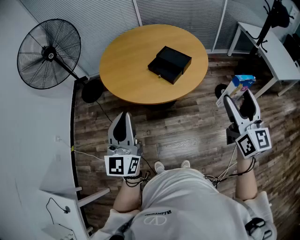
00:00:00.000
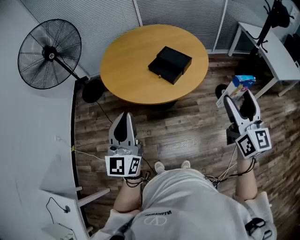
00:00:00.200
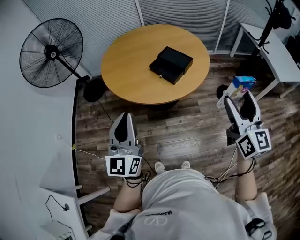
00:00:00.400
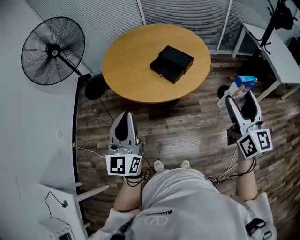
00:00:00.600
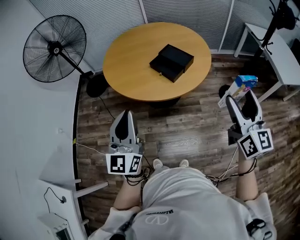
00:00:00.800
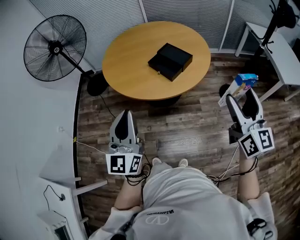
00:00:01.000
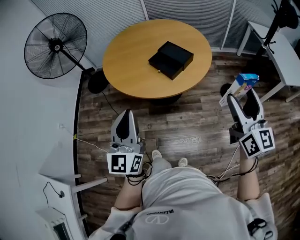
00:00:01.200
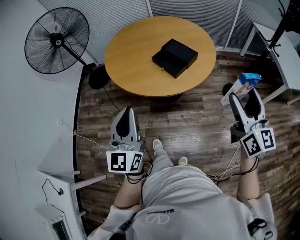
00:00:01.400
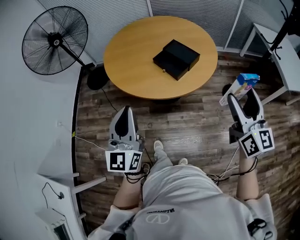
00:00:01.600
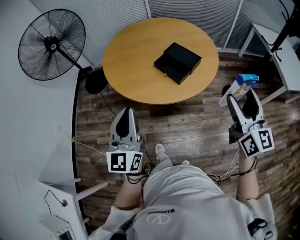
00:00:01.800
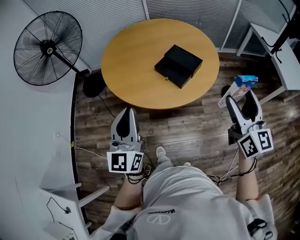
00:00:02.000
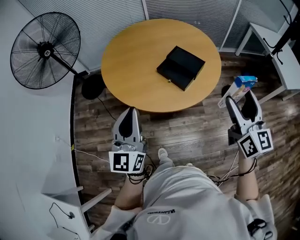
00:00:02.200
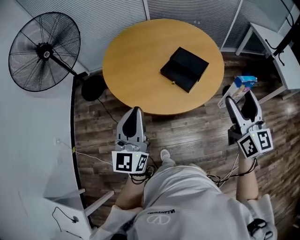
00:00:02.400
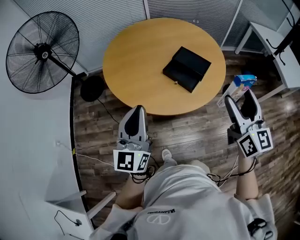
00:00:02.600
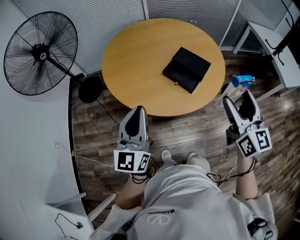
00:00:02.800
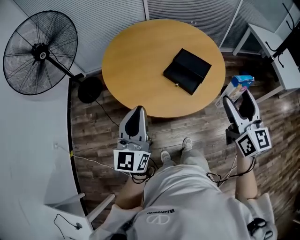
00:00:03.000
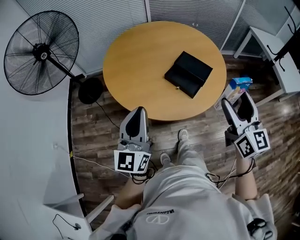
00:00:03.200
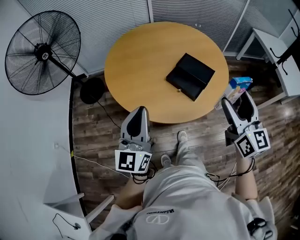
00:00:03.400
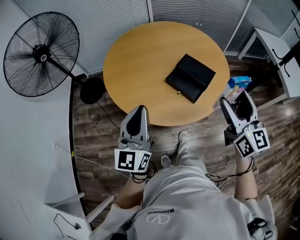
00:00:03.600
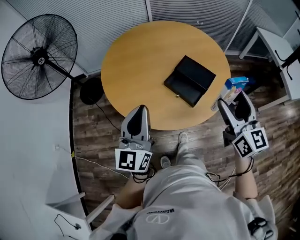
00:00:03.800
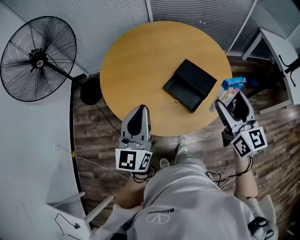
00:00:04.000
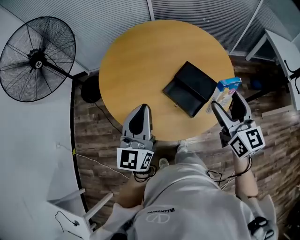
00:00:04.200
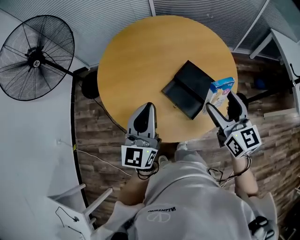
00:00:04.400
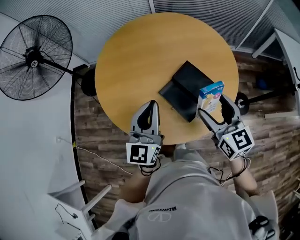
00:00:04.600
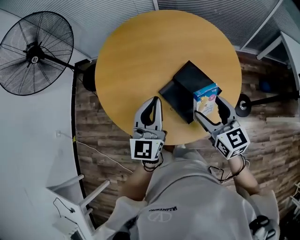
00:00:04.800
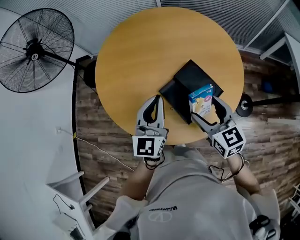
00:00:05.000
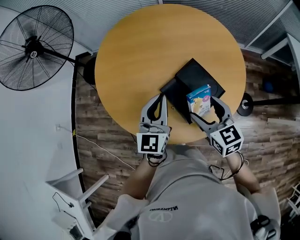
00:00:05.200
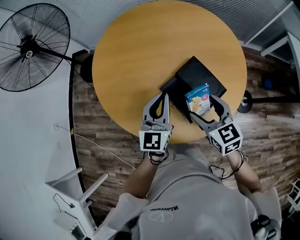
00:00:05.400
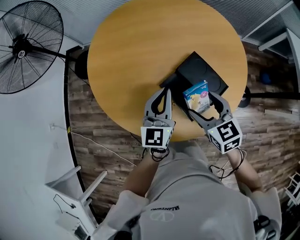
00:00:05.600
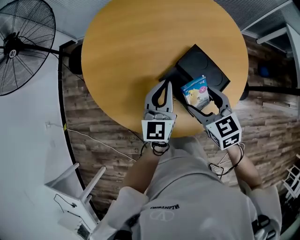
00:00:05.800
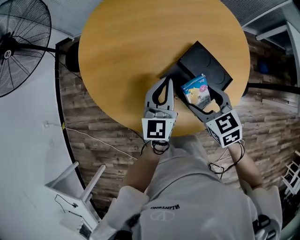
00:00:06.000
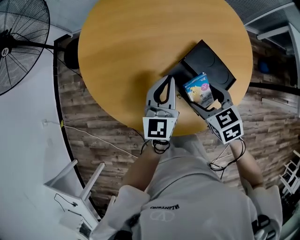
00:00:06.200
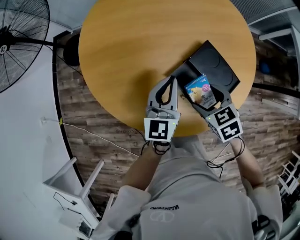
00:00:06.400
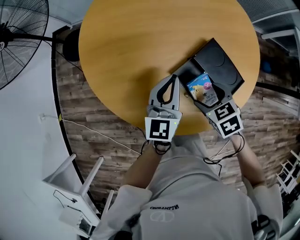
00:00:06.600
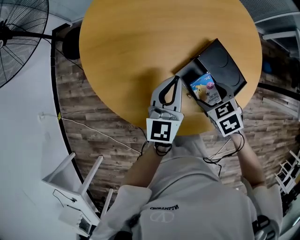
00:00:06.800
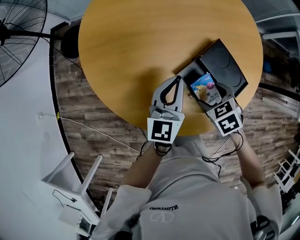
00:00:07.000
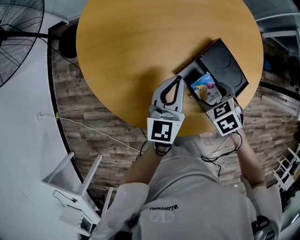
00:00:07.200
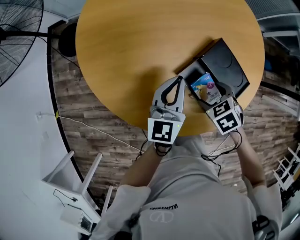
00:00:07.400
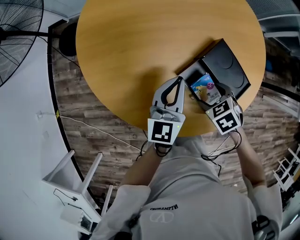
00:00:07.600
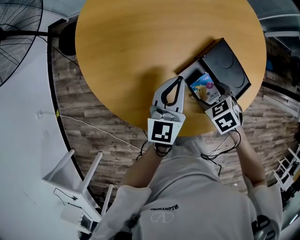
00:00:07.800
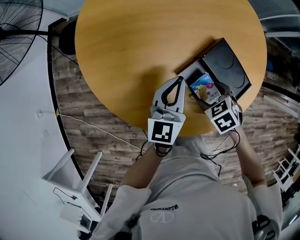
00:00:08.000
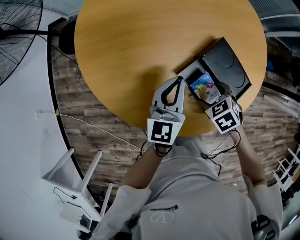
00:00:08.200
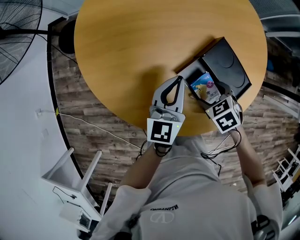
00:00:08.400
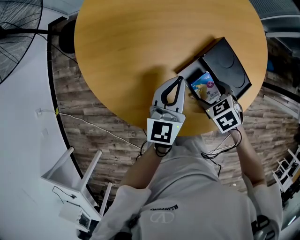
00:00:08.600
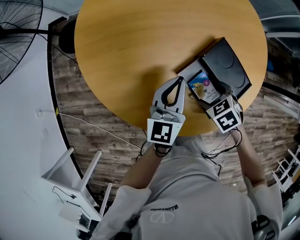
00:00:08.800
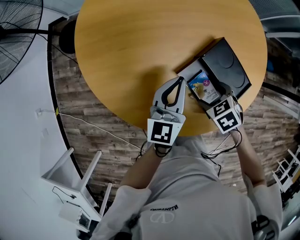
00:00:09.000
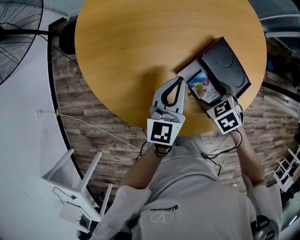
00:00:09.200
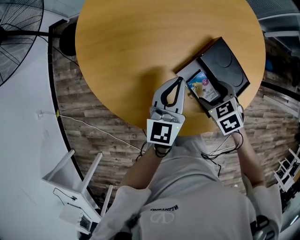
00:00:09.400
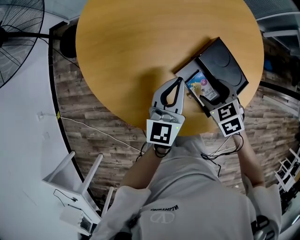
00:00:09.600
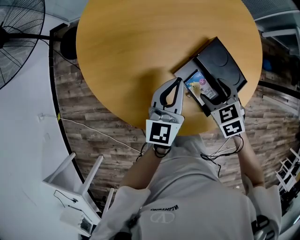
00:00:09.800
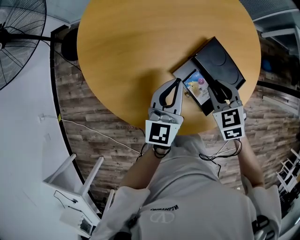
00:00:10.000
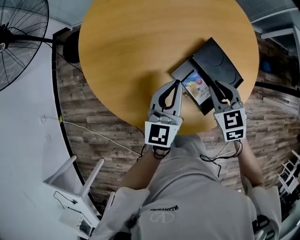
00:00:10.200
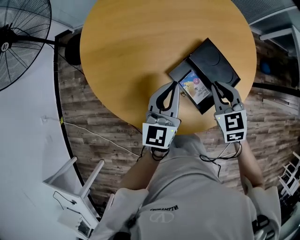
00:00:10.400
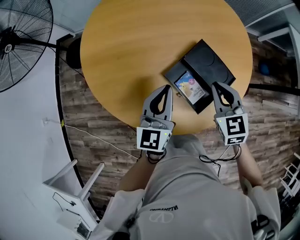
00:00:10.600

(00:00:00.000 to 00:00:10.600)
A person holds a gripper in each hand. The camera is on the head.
00:00:00.000 - 00:00:01.600: The right gripper changes place by approximately 5 cm.
00:00:01.600 - 00:00:03.000: The left gripper goes roughly 20 cm forward and to the left. The right gripper moves to the left and forward, approximately 20 cm.
00:00:03.000 - 00:00:04.600: The left gripper travels forward and to the right by approximately 30 cm, while the right gripper is displaced forward and downward by roughly 30 cm, and changes its angle by some 30 degrees.
00:00:04.600 - 00:00:06.000: The right gripper moves downward and to the left, some 15 cm, and rotates some 30 degrees. Meanwhile the left gripper heads downward and forward, covering about 15 cm.
00:00:06.000 - 00:00:07.600: The right gripper moves downward, approximately 15 cm, and turns by roughly 30 degrees, while the left gripper travels downward by approximately 5 cm.
00:00:07.600 - 00:00:09.000: There are only small adjustments of the grippers.
00:00:09.000 - 00:00:10.600: The left gripper shifts roughly 5 cm upward. Meanwhile the right gripper shifts about 15 cm upward, tips its fingers upward by about 40 degrees, and closes up.

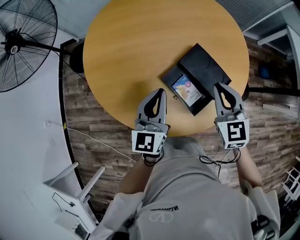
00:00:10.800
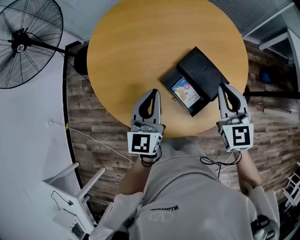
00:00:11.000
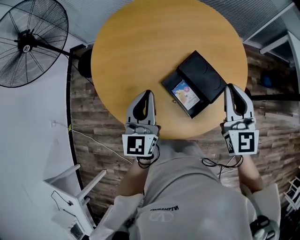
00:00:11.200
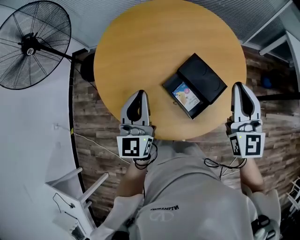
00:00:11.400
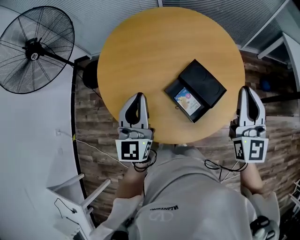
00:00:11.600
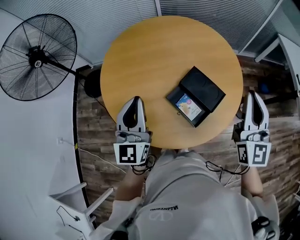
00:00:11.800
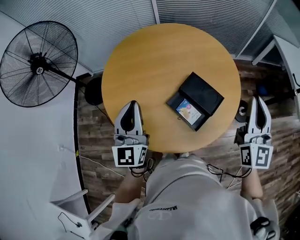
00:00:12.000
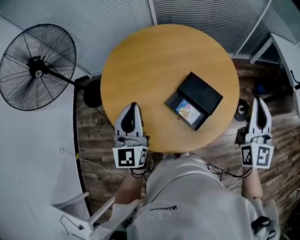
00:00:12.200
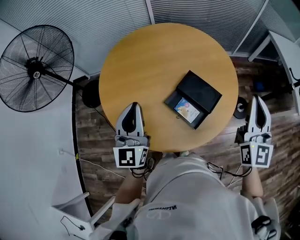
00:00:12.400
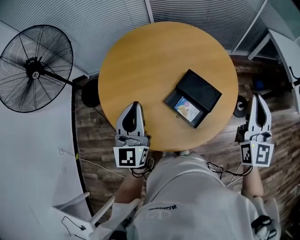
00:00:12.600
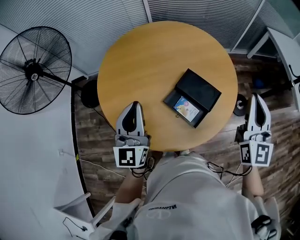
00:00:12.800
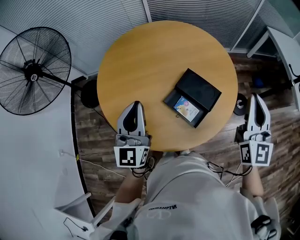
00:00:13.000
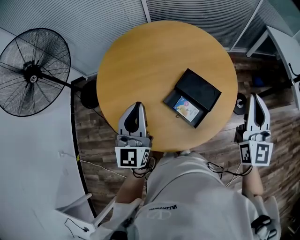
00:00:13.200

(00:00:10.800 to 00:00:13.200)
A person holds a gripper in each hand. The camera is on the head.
00:00:10.800 - 00:00:12.000: The right gripper moves upward and to the right, some 25 cm, and tilts its fingers approximately 30 degrees upward. The left gripper shifts roughly 20 cm upward and to the left.
00:00:12.000 - 00:00:13.200: There are only small adjustments of the grippers.

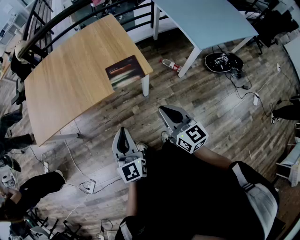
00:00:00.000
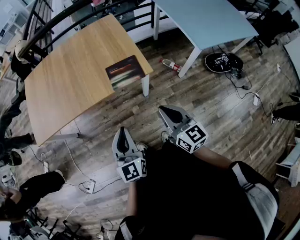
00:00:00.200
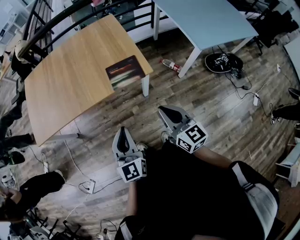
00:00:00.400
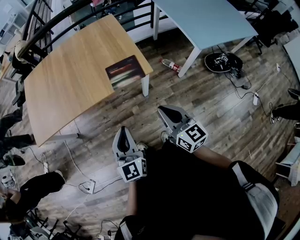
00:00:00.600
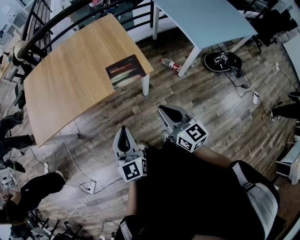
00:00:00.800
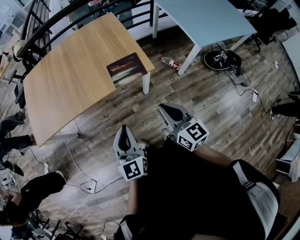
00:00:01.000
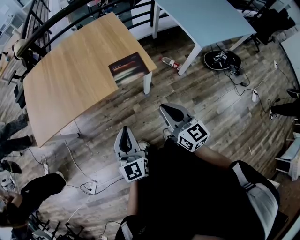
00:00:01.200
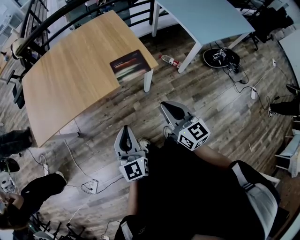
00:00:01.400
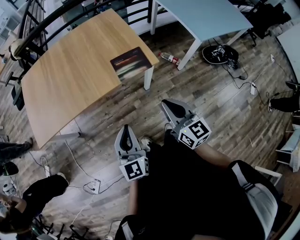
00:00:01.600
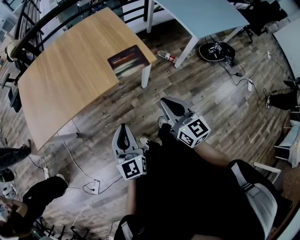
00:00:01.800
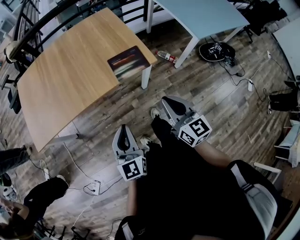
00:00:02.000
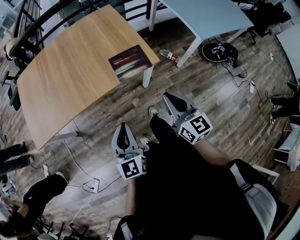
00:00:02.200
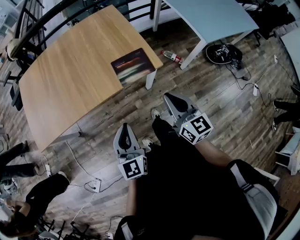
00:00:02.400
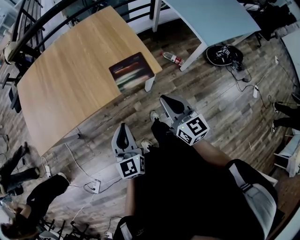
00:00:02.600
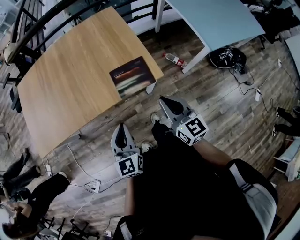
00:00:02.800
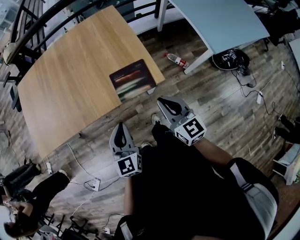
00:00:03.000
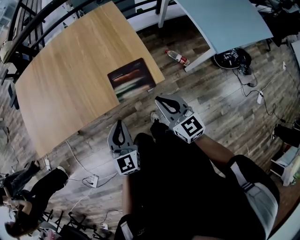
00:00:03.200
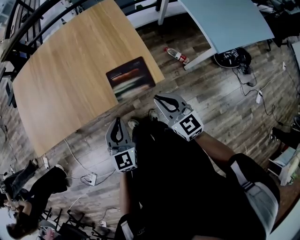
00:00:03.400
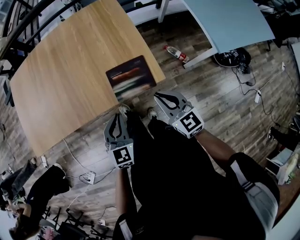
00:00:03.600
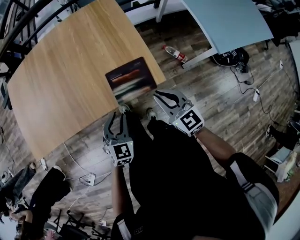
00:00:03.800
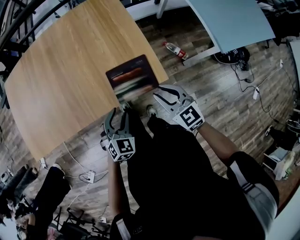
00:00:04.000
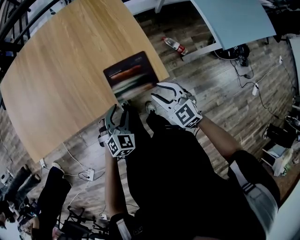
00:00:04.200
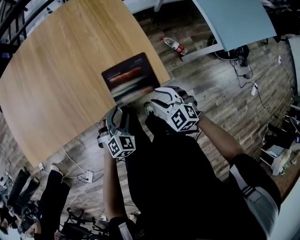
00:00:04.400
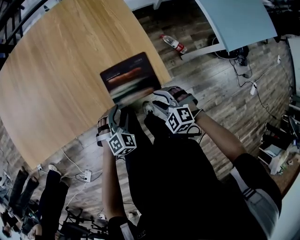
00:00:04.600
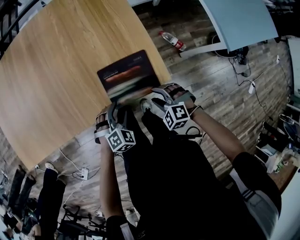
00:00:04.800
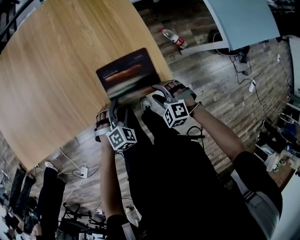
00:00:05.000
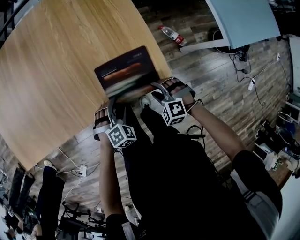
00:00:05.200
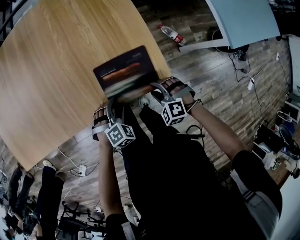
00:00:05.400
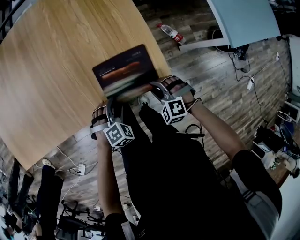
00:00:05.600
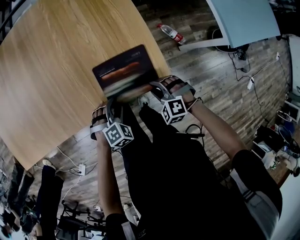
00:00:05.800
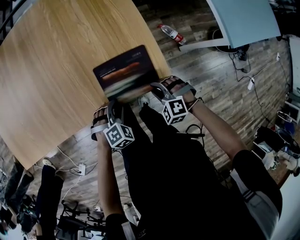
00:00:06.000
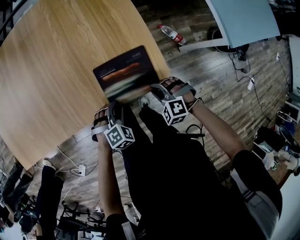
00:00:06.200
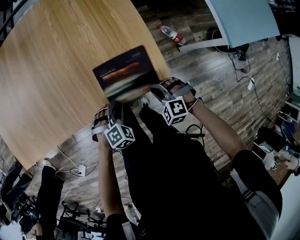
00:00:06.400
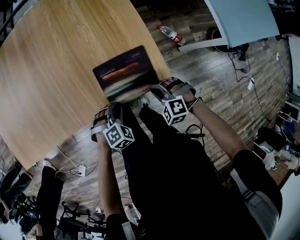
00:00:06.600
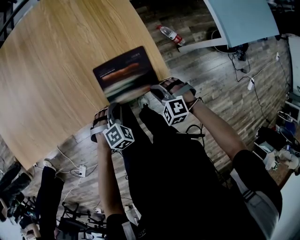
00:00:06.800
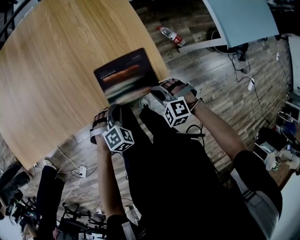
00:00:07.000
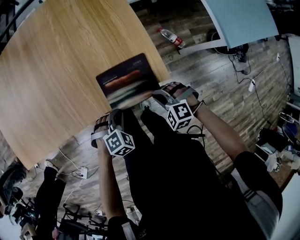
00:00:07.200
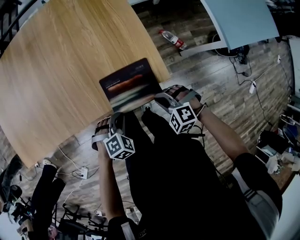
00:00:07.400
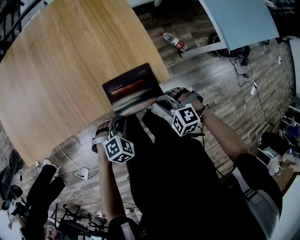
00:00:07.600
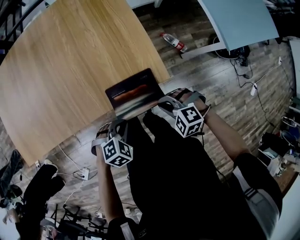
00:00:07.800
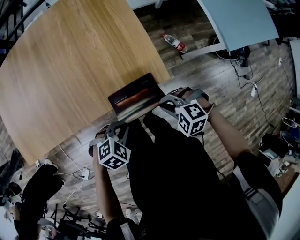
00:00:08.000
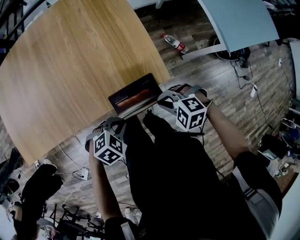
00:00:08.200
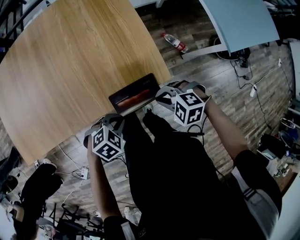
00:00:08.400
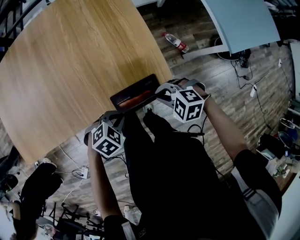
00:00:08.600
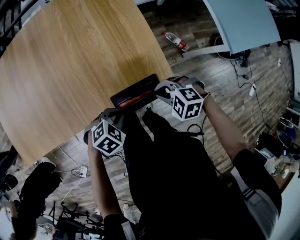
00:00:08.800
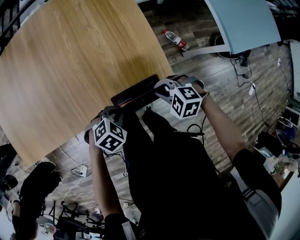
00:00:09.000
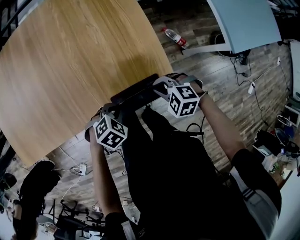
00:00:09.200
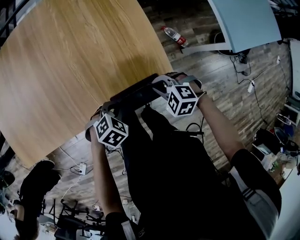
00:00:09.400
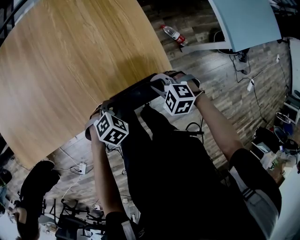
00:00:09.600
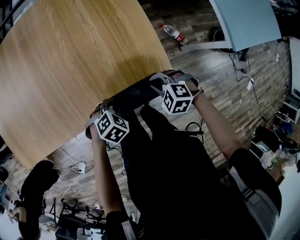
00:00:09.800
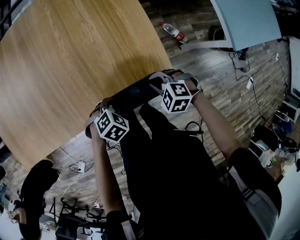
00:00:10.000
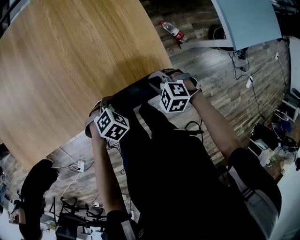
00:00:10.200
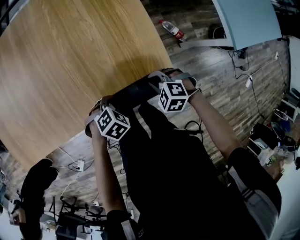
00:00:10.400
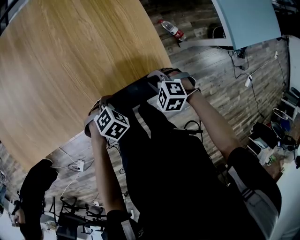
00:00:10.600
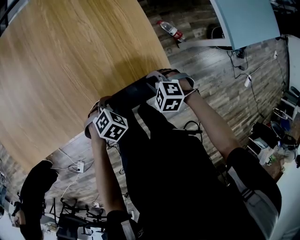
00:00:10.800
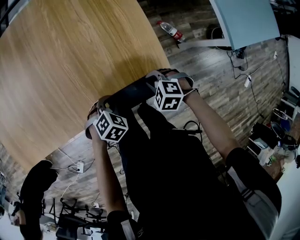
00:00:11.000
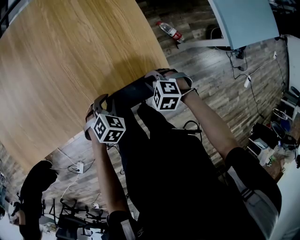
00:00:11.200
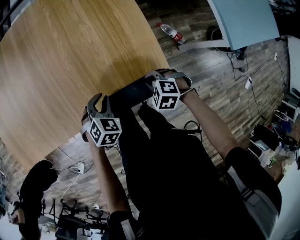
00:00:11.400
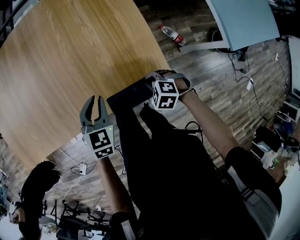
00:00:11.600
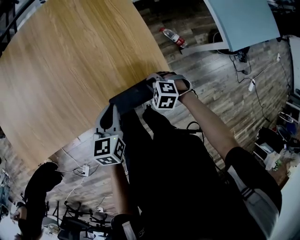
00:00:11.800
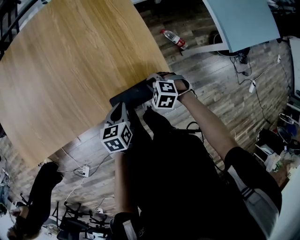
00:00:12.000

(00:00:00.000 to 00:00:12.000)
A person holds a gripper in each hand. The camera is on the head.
00:00:00.000 - 00:00:01.600: Both grippers move to the left, approximately 10 cm.
00:00:01.600 - 00:00:03.000: The two grippers go about 20 cm forward.
00:00:03.000 - 00:00:04.400: The right gripper heads downward, covering some 20 cm, angles its fingers downward, by approximately 30 degrees, and opens its fingers, while the left gripper is displaced downward and forward by roughly 20 cm, points its fingers some 30 degrees further downward, and opens its fingers.
00:00:04.400 - 00:00:06.000: The two grippers go roughly 10 cm downward. The right gripper turns by roughly 30 degrees.
00:00:06.000 - 00:00:07.600: Both grippers move upward and backward, about 10 cm. The right gripper closes, while the left gripper closes its fingers.
00:00:07.600 - 00:00:09.000: The left gripper ends up approximately 5 cm from where it was; the right gripper ends up roughly 10 cm from where it was.
00:00:09.000 - 00:00:10.400: The grippers both shift downward by roughly 5 cm.
00:00:10.400 - 00:00:12.000: The left gripper is displaced upward by approximately 5 cm, and twists some 60 degrees counterclockwise, seen from behind.
